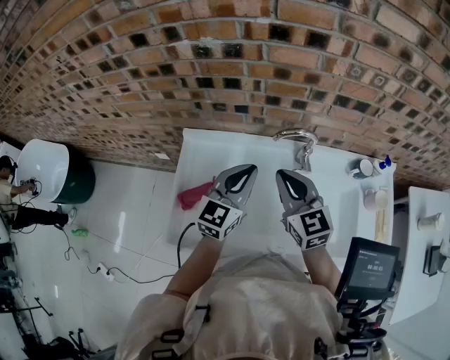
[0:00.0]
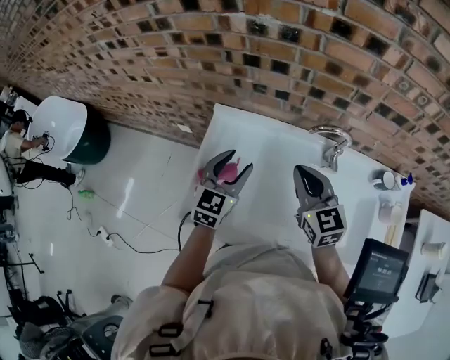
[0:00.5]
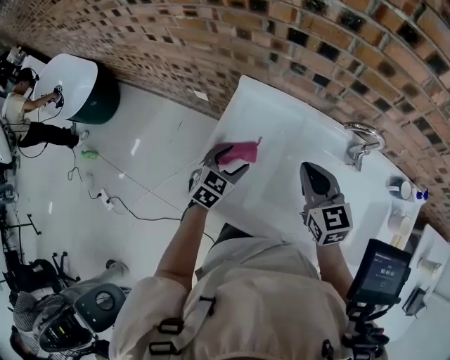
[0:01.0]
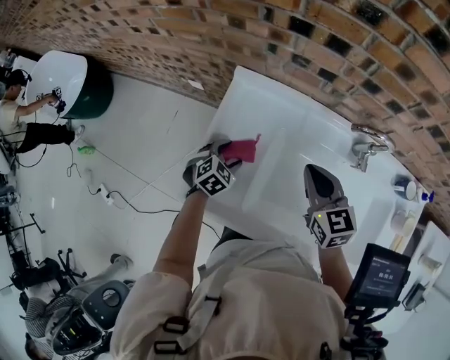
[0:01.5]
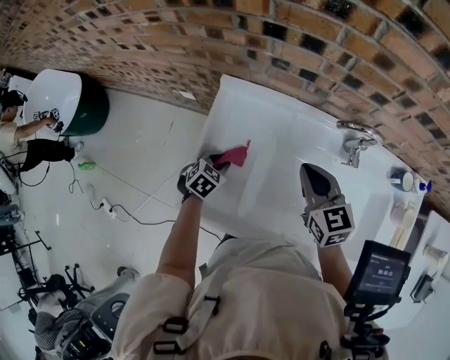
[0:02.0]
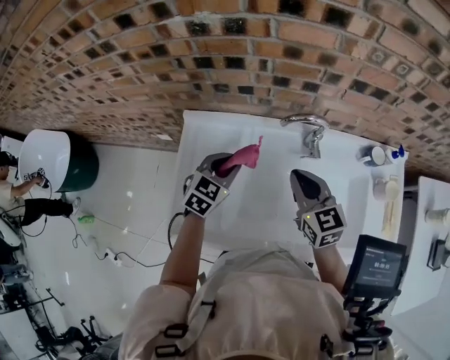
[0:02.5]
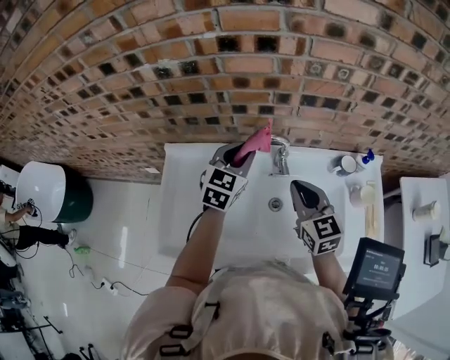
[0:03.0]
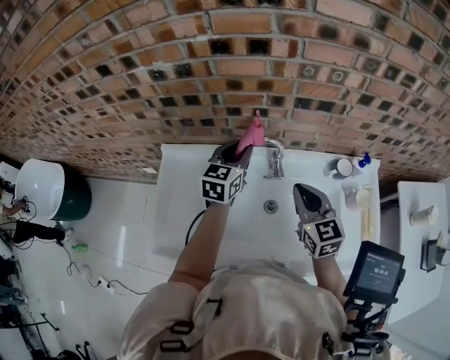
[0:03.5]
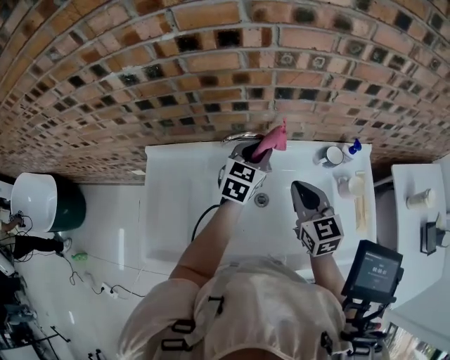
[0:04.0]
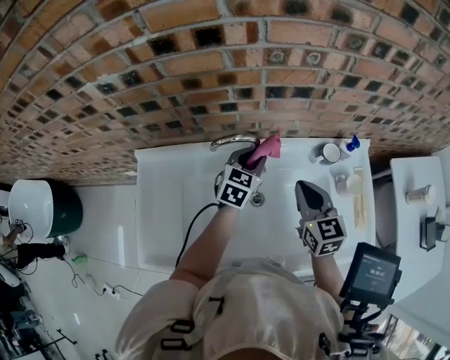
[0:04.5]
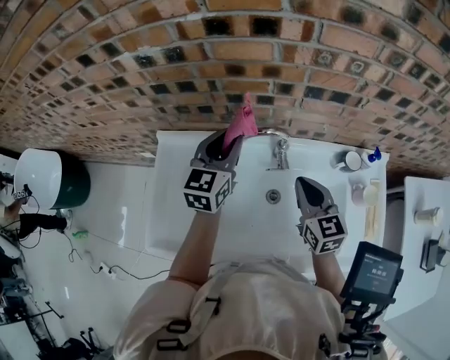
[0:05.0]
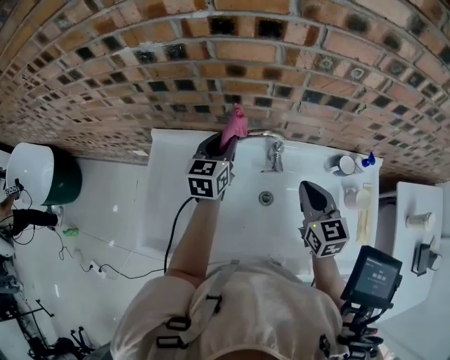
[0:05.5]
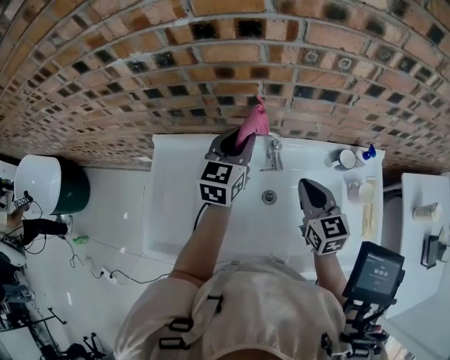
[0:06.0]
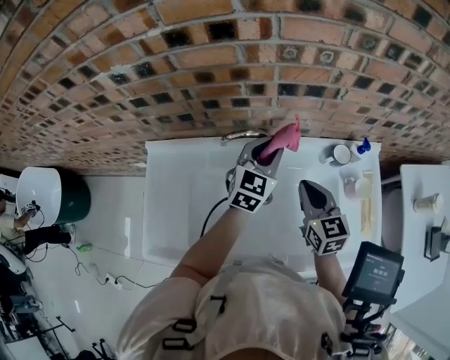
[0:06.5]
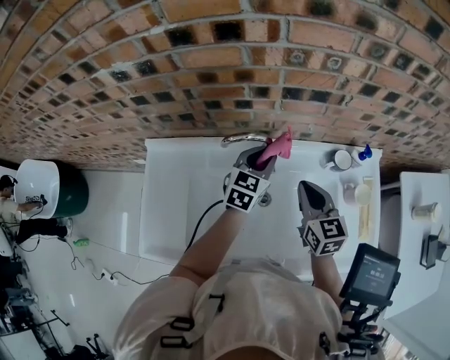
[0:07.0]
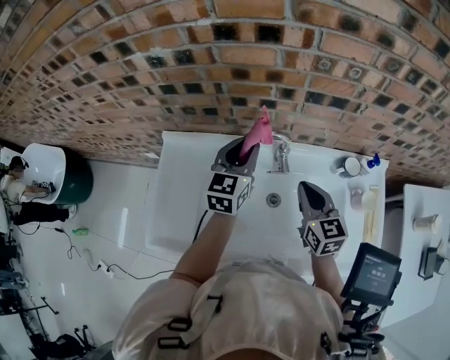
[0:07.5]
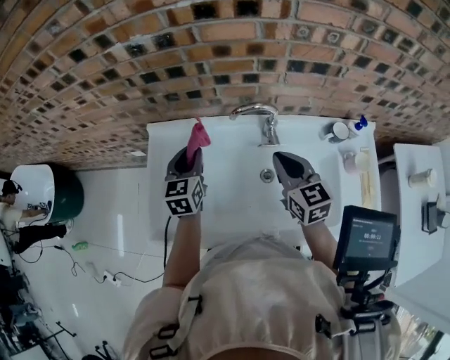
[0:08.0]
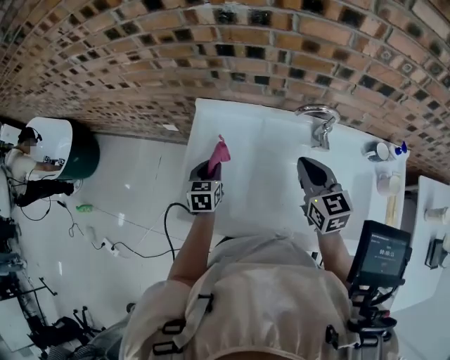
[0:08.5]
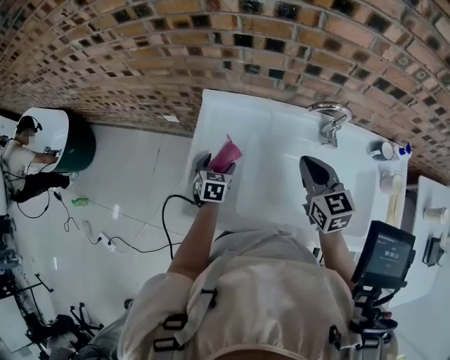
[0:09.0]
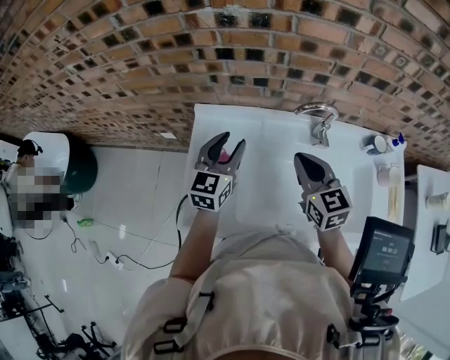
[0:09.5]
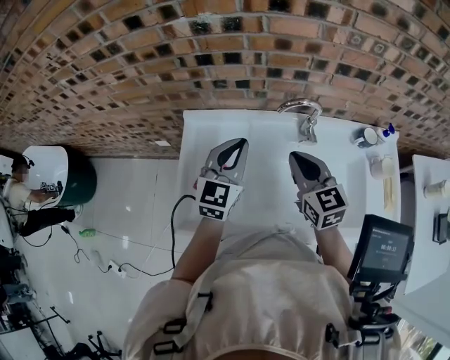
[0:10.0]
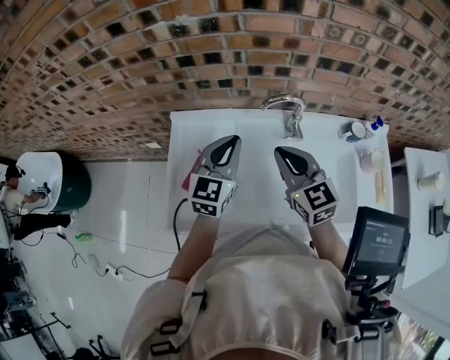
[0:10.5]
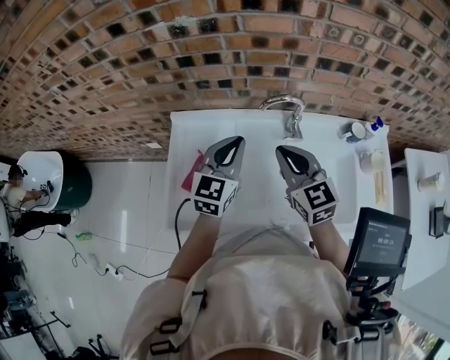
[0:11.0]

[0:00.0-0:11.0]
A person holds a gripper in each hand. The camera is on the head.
0:00.0 to 0:02.0: The left gripper heads downward and to the left, covering roughly 35 cm, points its fingers some 50 degrees further downward, and opens, then closes once more. The right gripper moves downward and to the left, some 10 cm.
0:02.0 to 0:03.5: The left gripper travels to the right, upward and forward by approximately 40 cm, and tilts its fingers approximately 40 degrees upward, while the right gripper travels to the right by approximately 20 cm.
0:03.5 to 0:05.5: The left gripper travels to the right and back again, roughly 10 cm each way.
0:05.5 to 0:07.5: The left gripper heads upward, covering about 5 cm, and reaches some 20 cm to the right, then returns.
0:07.5 to 0:09.0: The right gripper shifts some 20 cm to the left, while the left gripper is displaced to the left and downward by roughly 40 cm, tips its fingers downward by approximately 30 degrees, and opens up.
0:09.0 to 0:11.0: The left gripper travels upward and to the right by about 30 cm, points its fingers approximately 40 degrees further upward, and closes its fingers. Meanwhile the right gripper is displaced upward by some 5 cm.

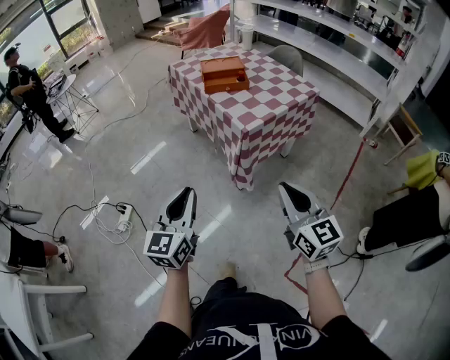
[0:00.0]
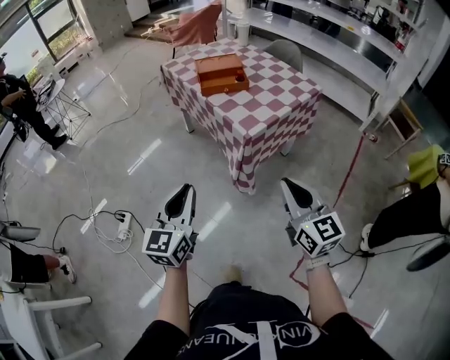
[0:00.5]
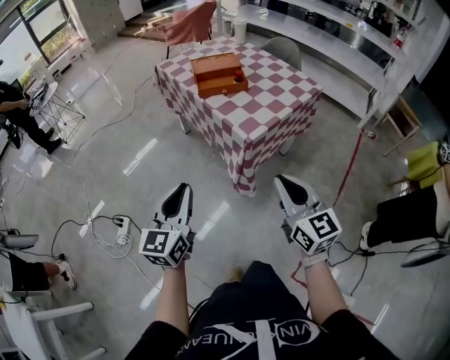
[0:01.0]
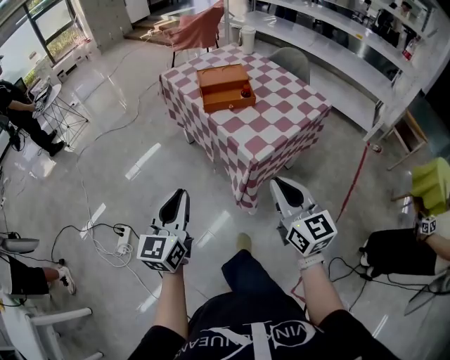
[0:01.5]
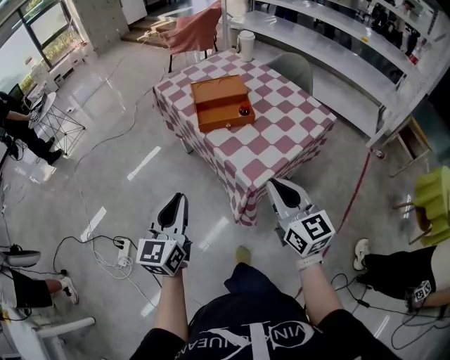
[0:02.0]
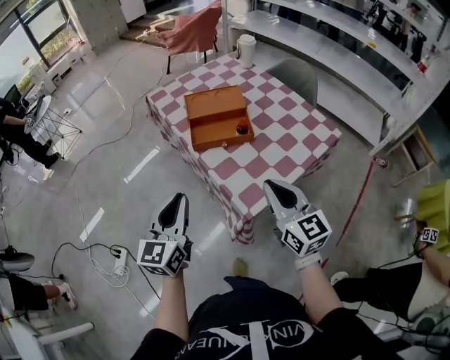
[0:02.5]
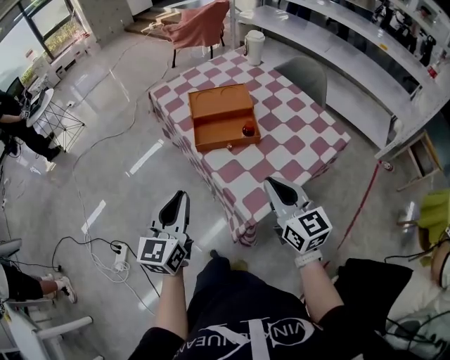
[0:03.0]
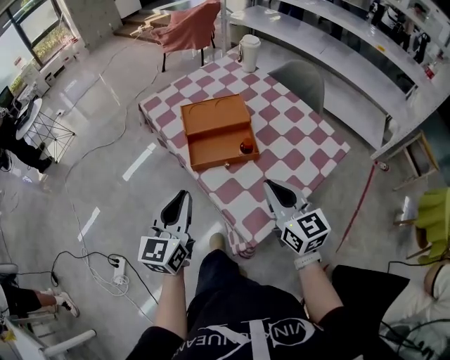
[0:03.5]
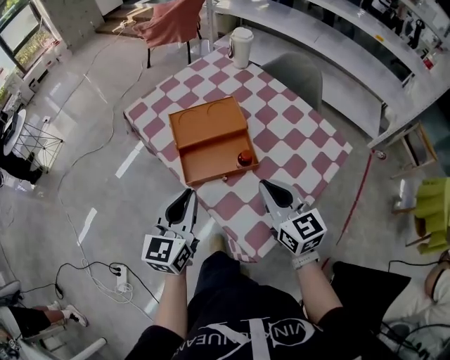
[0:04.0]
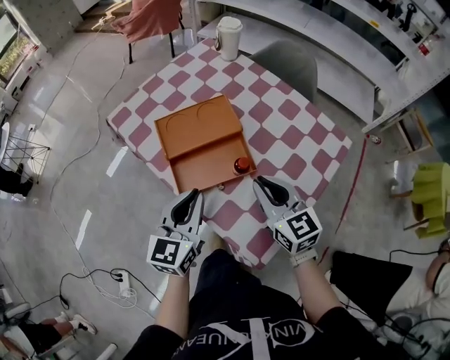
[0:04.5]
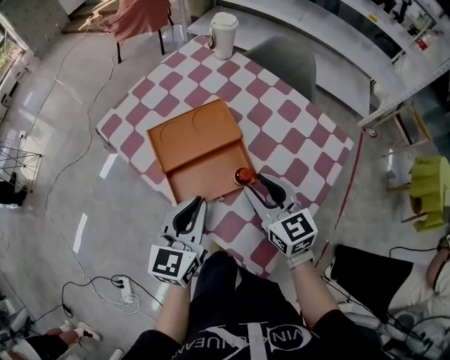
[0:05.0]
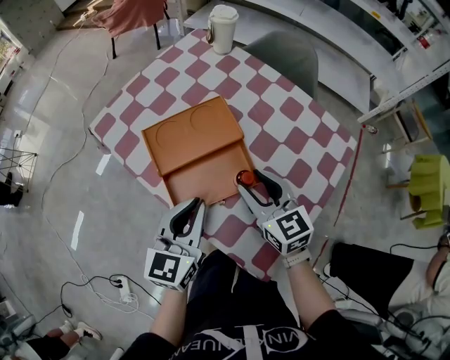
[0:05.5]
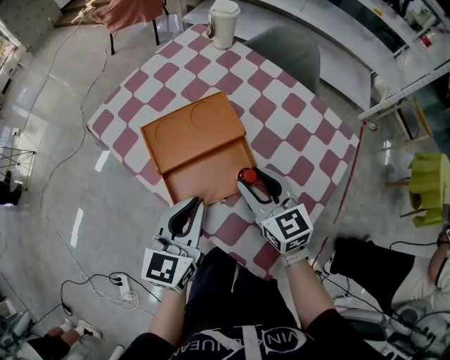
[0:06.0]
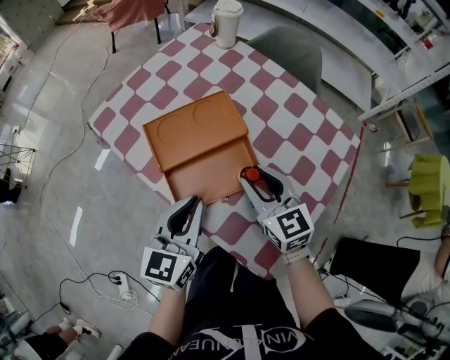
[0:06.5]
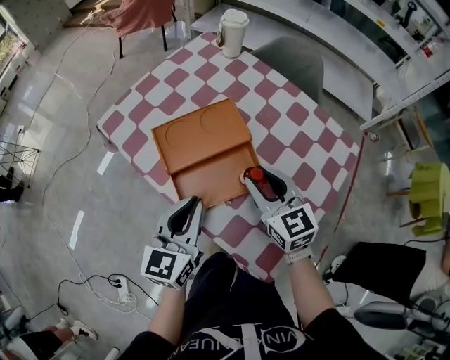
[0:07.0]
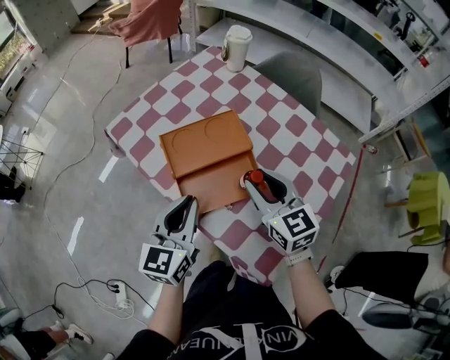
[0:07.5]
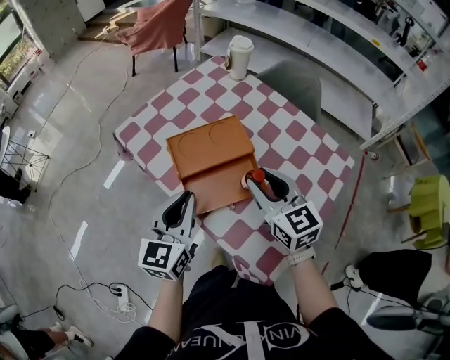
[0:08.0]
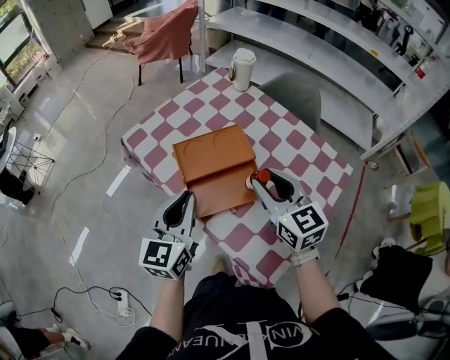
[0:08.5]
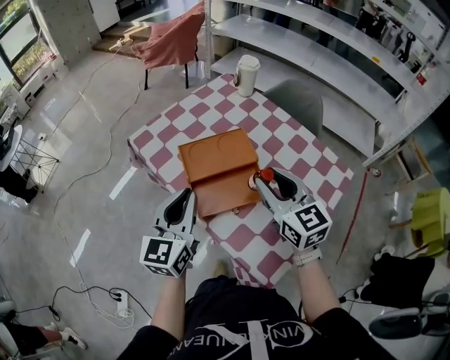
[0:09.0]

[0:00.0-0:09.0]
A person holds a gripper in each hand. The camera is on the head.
0:00.0 to 0:02.0: The grippers both shift forward by about 30 cm.
0:02.0 to 0:04.5: Both grippers move forward, roughly 30 cm.
0:04.5 to 0:07.0: The right gripper moves forward, roughly 5 cm, and opens its fingers.
0:07.0 to 0:09.0: The right gripper is displaced upward by approximately 10 cm, while the left gripper shifts about 10 cm upward and to the left.

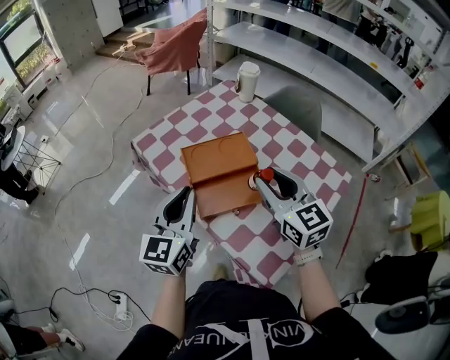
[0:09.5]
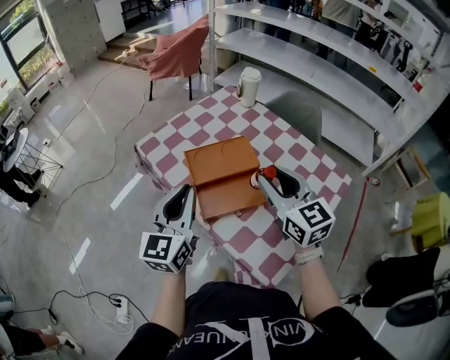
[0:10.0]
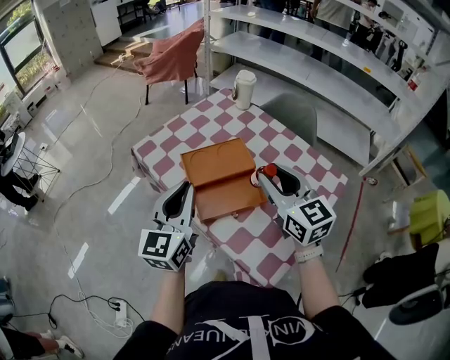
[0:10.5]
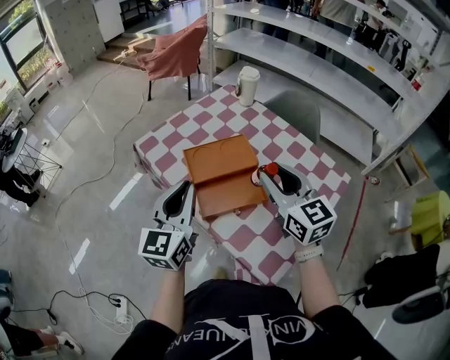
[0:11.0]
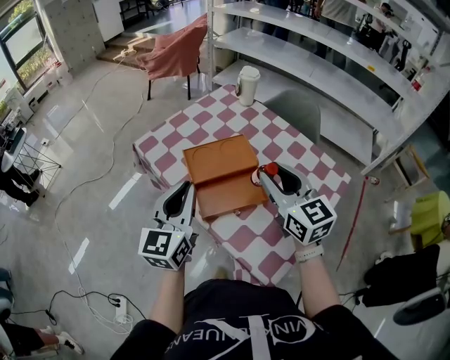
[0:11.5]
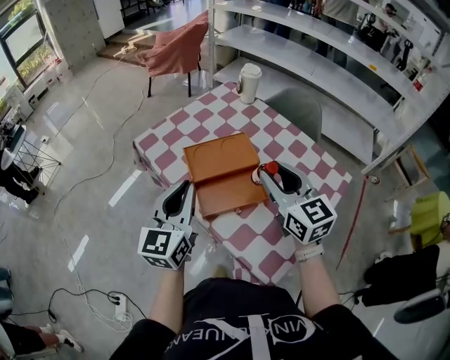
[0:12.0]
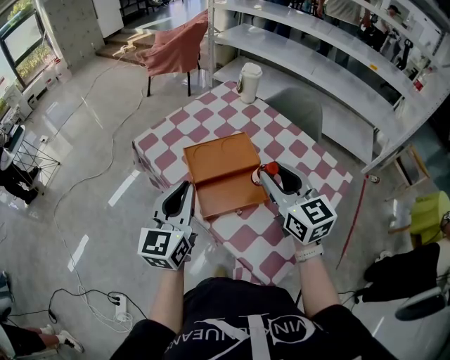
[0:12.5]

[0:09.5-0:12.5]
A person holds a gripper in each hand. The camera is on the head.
0:09.5 to 0:12.5: The grippers make only small movements.

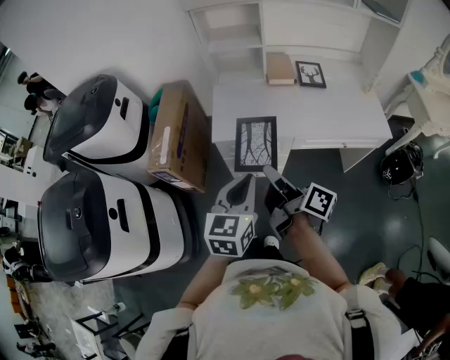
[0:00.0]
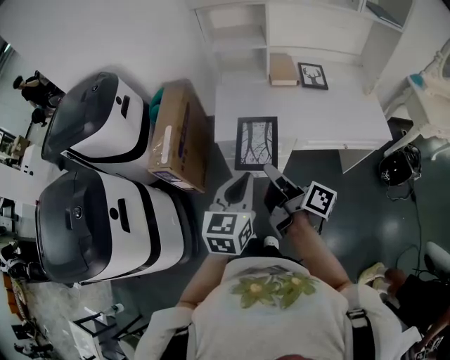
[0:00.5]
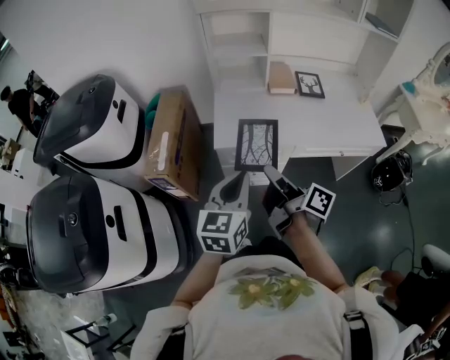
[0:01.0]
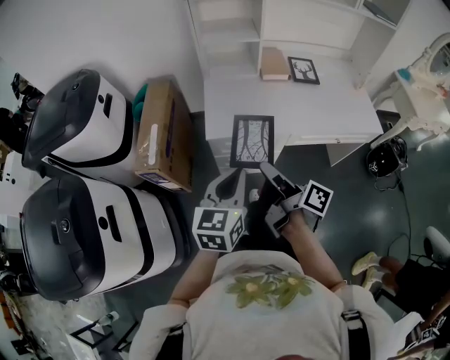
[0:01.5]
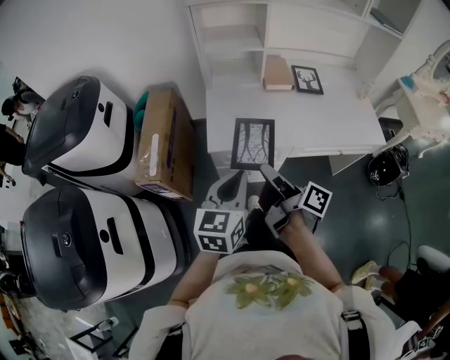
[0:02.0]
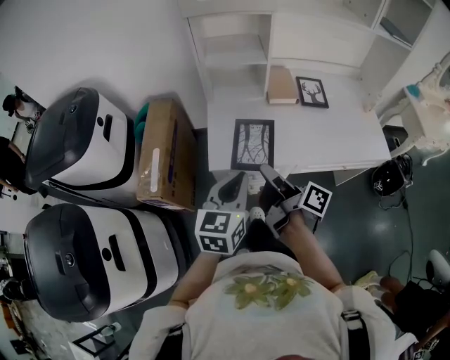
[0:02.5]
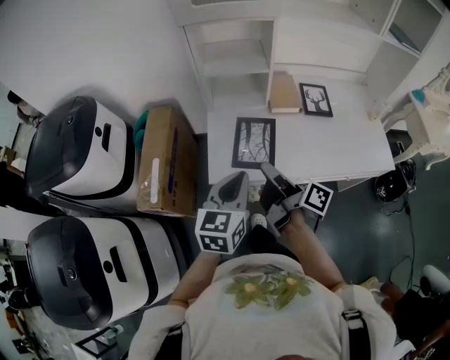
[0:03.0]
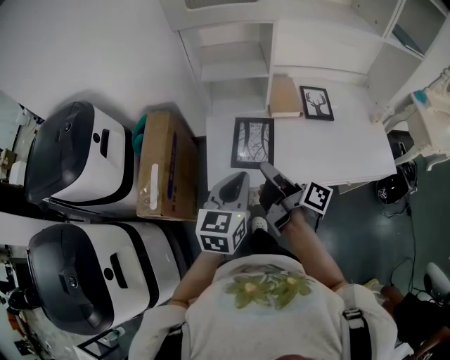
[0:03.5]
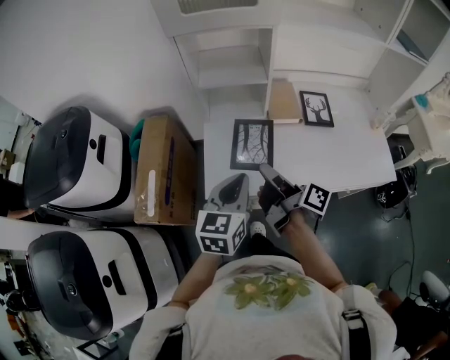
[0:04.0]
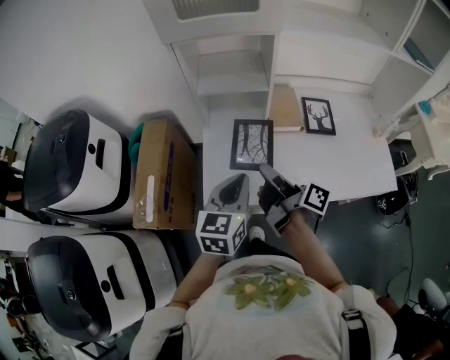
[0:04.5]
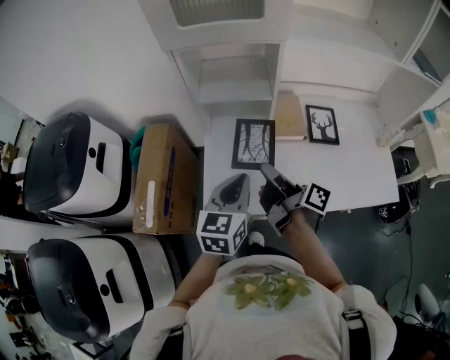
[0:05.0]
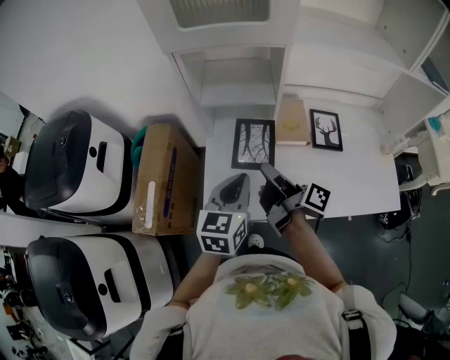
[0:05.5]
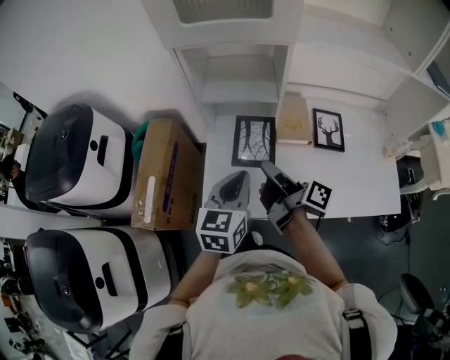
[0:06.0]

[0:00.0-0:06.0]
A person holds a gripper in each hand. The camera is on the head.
0:00.0 to 0:02.0: The left gripper moves roughly 10 cm.
0:02.0 to 0:04.0: The left gripper ends up some 20 cm from where it was.
0:04.0 to 0:06.0: The left gripper ends up about 10 cm from where it was.
